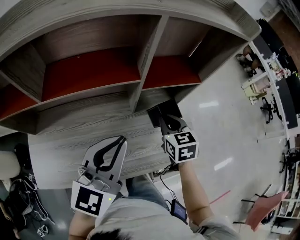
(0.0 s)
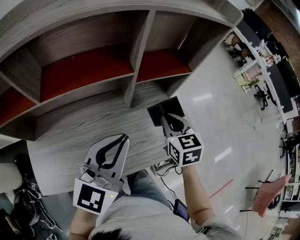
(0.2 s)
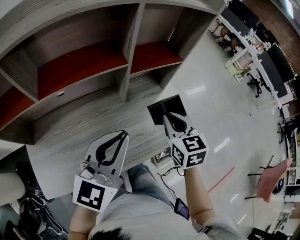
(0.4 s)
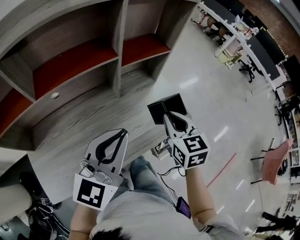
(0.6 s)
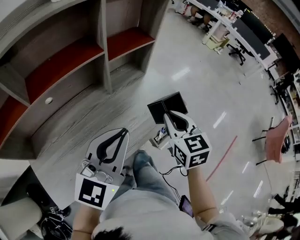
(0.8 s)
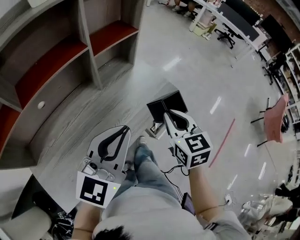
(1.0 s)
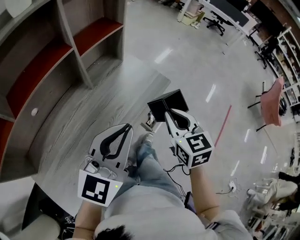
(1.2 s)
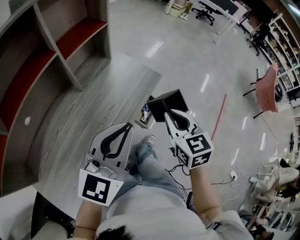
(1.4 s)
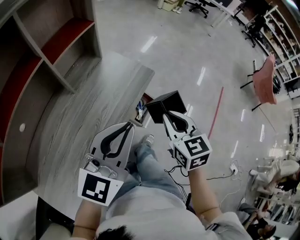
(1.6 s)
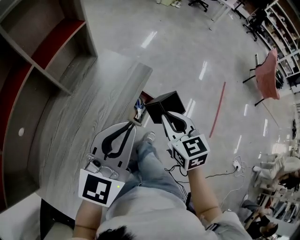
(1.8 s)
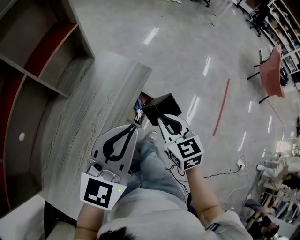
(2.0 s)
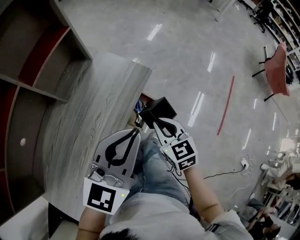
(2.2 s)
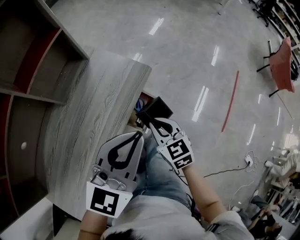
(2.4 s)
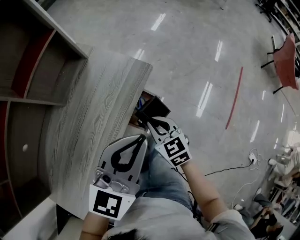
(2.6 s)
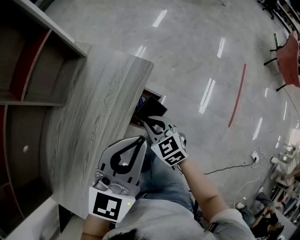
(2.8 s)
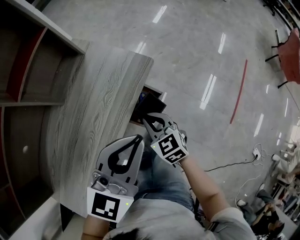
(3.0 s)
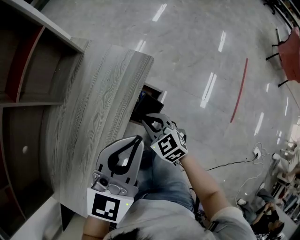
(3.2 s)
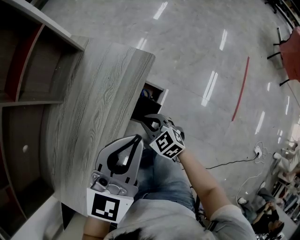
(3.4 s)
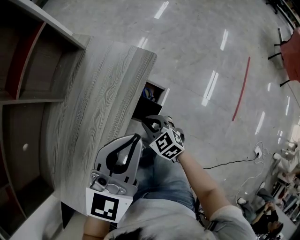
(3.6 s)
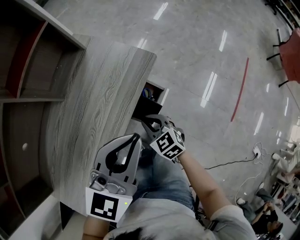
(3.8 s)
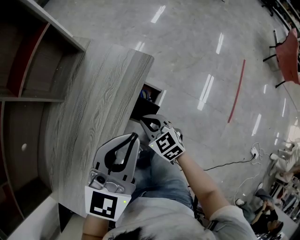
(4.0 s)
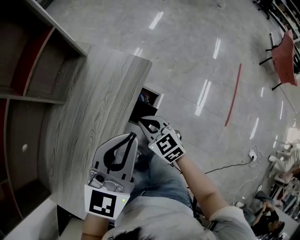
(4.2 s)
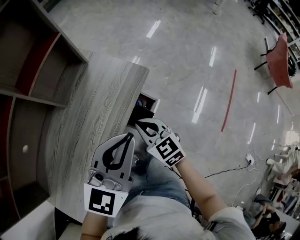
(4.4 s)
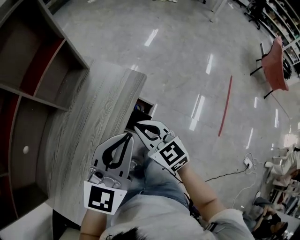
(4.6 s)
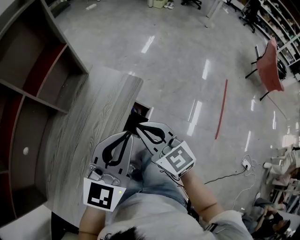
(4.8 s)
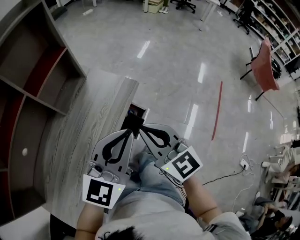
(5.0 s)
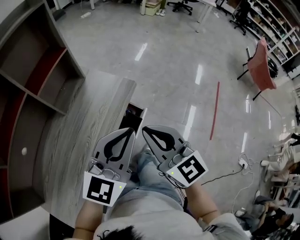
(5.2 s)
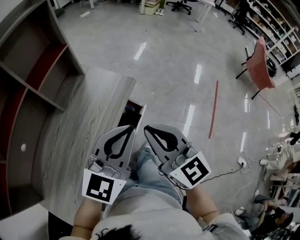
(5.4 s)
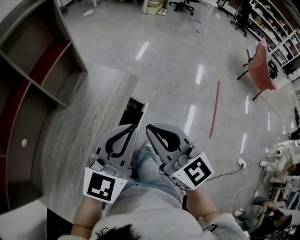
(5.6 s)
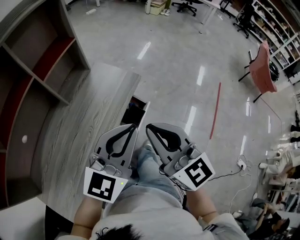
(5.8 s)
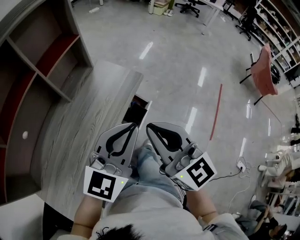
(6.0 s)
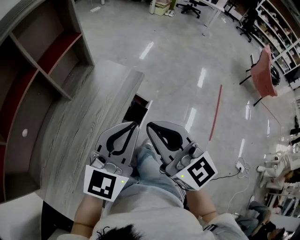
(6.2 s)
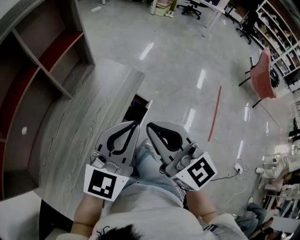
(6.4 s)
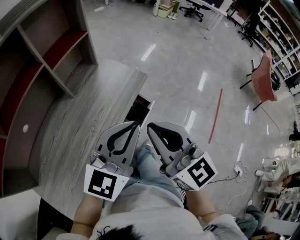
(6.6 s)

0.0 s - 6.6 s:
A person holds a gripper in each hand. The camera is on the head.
0.0 s - 1.6 s: The right gripper moves about 35 cm, and rotates roughly 40 degrees. Meanwhile the left gripper moves about 20 cm, and swivels some 50 degrees.
1.6 s - 3.2 s: The right gripper is displaced downward by roughly 20 cm, and swivels about 20 degrees; the left gripper goes about 15 cm to the right, downward and forward.
3.2 s - 5.0 s: The left gripper shifts some 5 cm upward. Meanwhile the right gripper heads upward, covering roughly 25 cm, and swivels approximately 30 degrees.
5.0 s - 6.6 s: The left gripper moves backward, some 5 cm. Meanwhile the right gripper travels backward and upward by some 10 cm.

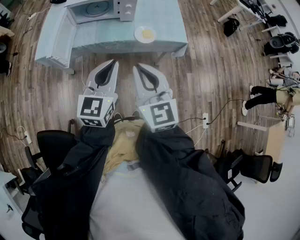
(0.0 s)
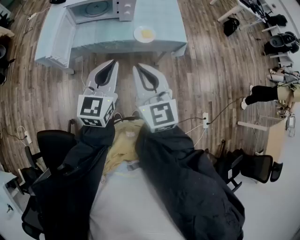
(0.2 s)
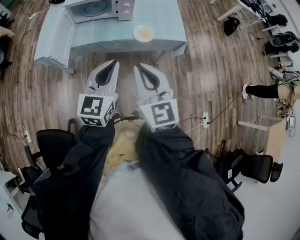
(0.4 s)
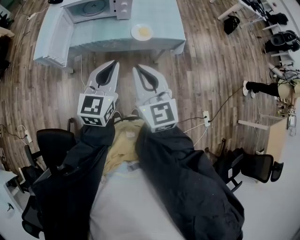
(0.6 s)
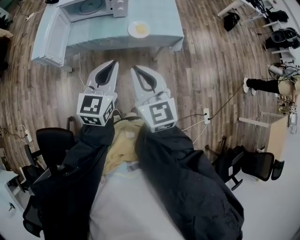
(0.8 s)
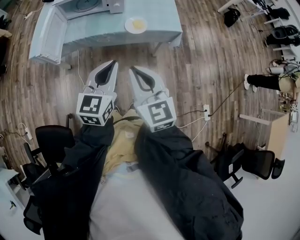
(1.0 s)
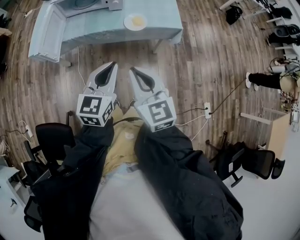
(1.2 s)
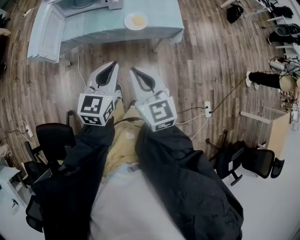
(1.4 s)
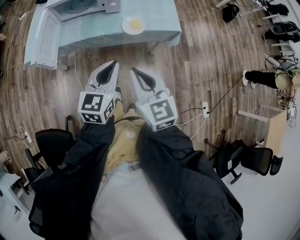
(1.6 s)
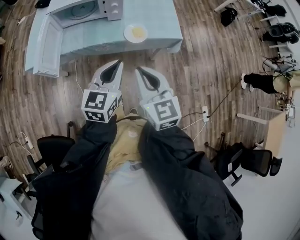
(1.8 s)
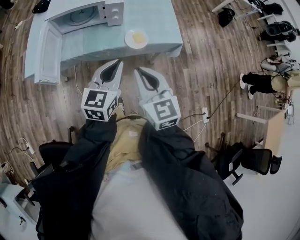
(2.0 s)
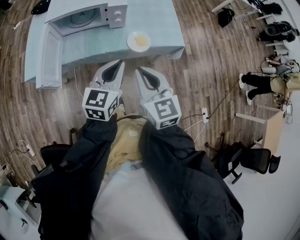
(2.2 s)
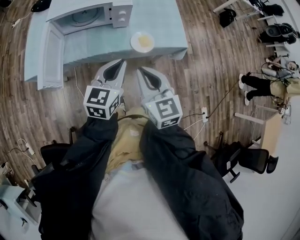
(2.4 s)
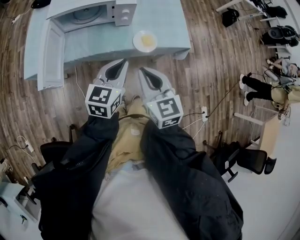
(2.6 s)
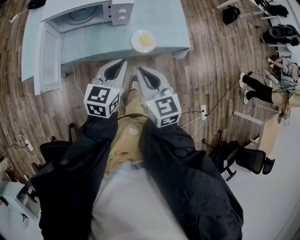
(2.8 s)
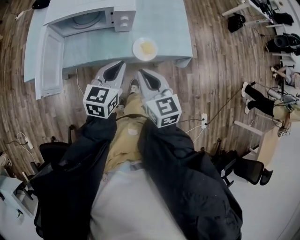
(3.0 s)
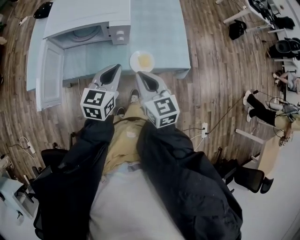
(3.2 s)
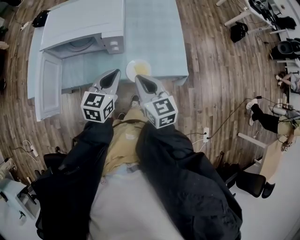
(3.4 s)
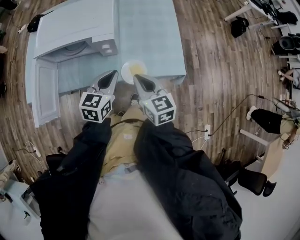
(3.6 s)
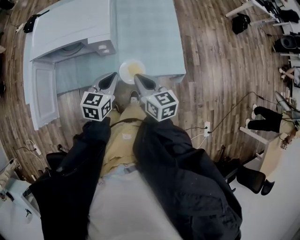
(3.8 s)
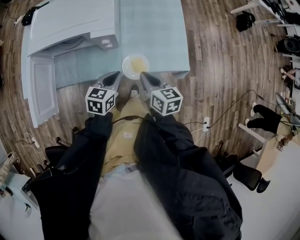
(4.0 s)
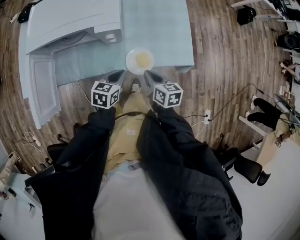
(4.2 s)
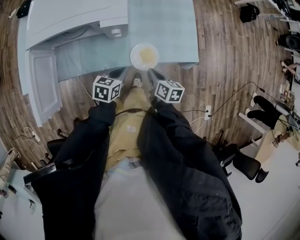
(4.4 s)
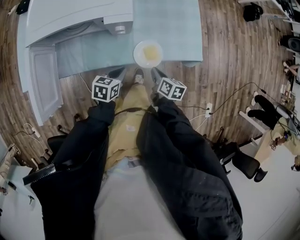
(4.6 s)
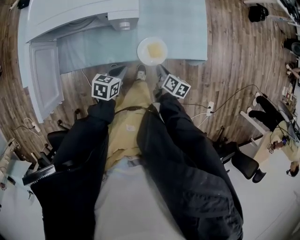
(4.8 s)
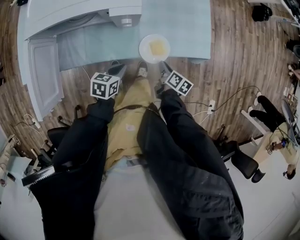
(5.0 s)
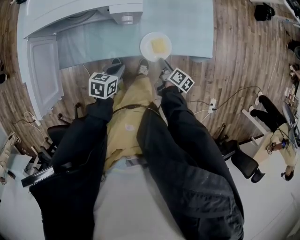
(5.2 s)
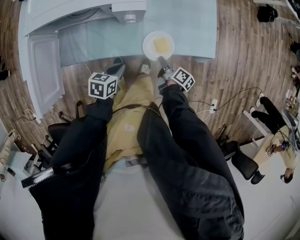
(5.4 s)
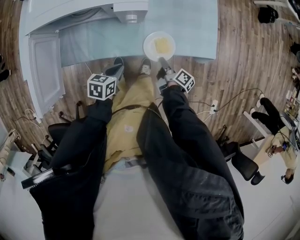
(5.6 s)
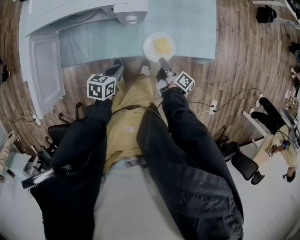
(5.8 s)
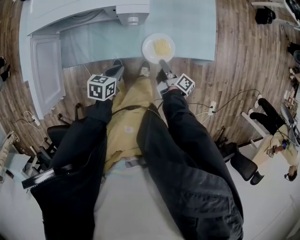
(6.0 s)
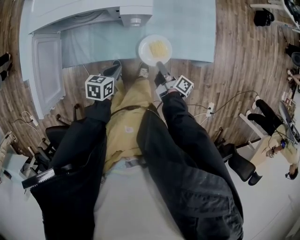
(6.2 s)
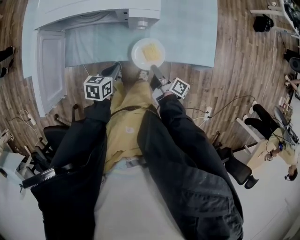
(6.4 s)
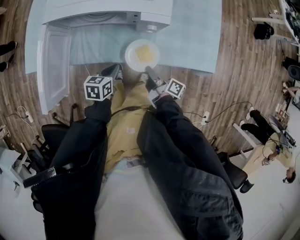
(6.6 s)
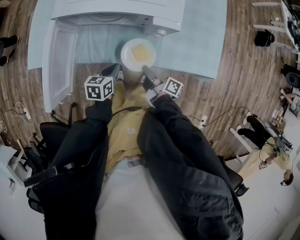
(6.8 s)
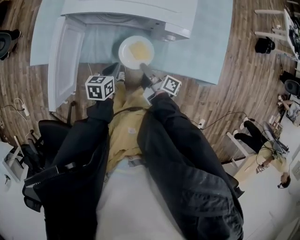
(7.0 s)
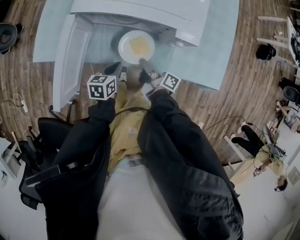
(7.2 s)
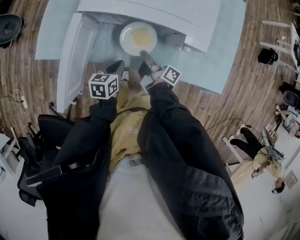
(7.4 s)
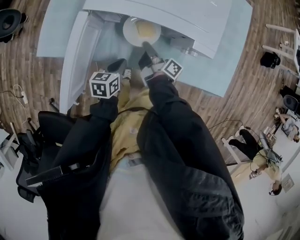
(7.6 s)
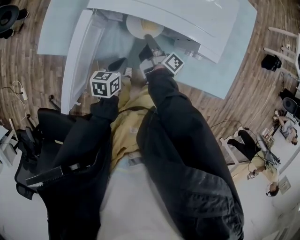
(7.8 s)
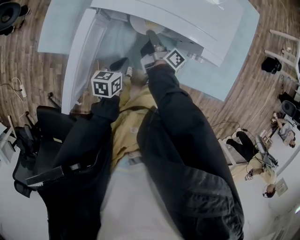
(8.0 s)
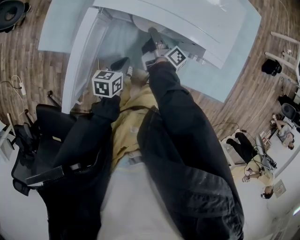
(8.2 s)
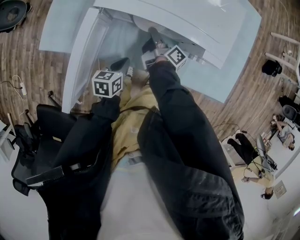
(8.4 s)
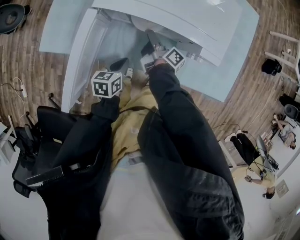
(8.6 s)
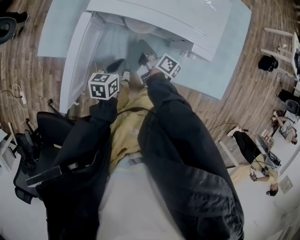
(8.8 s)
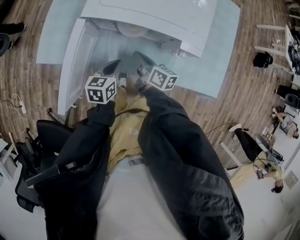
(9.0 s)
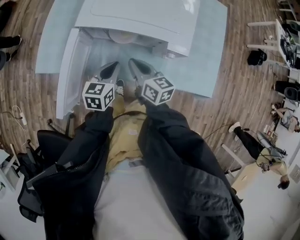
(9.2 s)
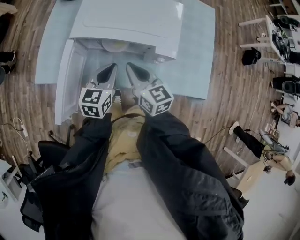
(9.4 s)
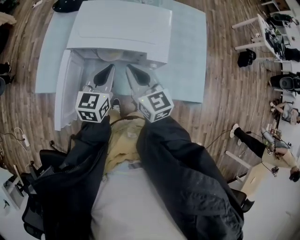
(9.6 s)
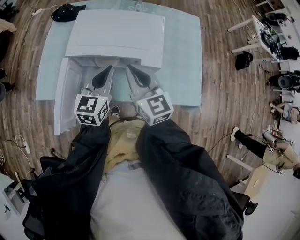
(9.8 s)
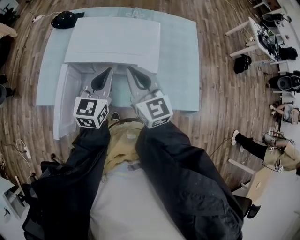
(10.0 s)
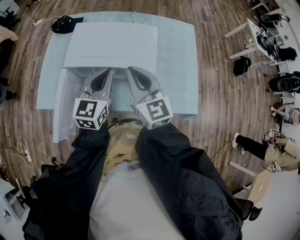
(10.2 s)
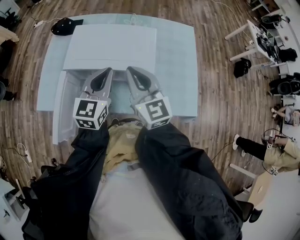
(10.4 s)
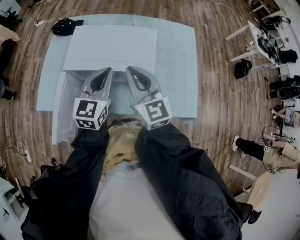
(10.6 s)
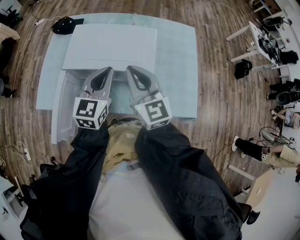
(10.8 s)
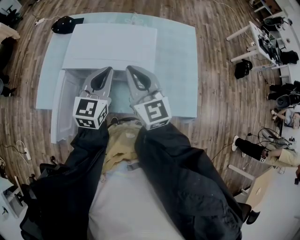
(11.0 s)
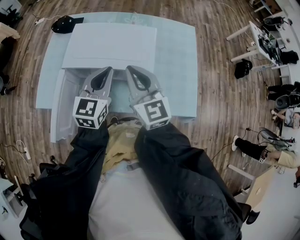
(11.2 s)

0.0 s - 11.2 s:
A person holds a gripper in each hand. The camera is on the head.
0.0 s - 1.6 s: The left gripper travels to the right and downward by about 10 cm. Meanwhile the right gripper heads downward and to the right, covering about 10 cm.
1.6 s - 3.2 s: Both grippers travel together forward, roughly 25 cm.
3.2 s - 4.8 s: The two grippers go about 25 cm downward. The left gripper turns by about 40 degrees. The right gripper twists some 50 degrees clockwise, seen from behind.
4.8 s - 6.4 s: The grippers both shift to the left by some 10 cm. The right gripper changes its angle by approximately 40 degrees, and opens and closes again.
6.4 s - 8.0 s: The right gripper goes roughly 30 cm to the left and forward. Meanwhile the left gripper goes about 15 cm to the left and forward.
8.0 s - 9.6 s: The left gripper heads upward and to the right, covering about 25 cm, and changes its angle by about 40 degrees. Meanwhile the right gripper heads upward, covering some 25 cm, rolls counterclockwise, seen from behind, by some 80 degrees, and opens, then closes once more.
9.6 s - 11.2 s: The grippers both shift upward by approximately 5 cm.

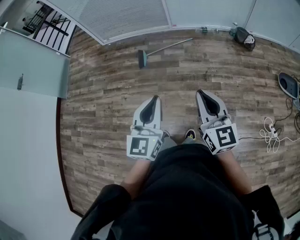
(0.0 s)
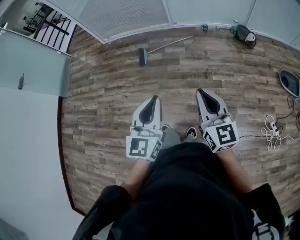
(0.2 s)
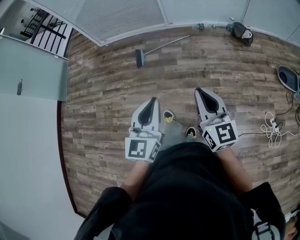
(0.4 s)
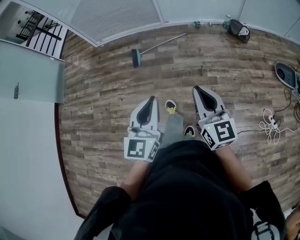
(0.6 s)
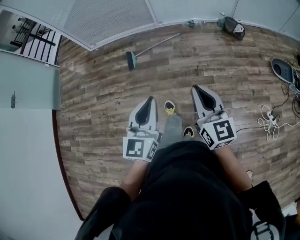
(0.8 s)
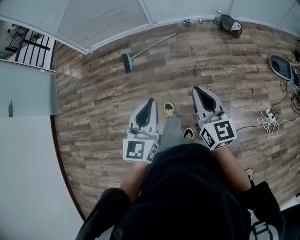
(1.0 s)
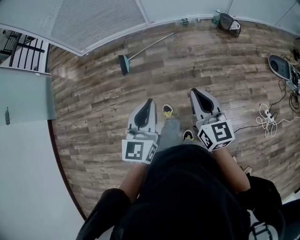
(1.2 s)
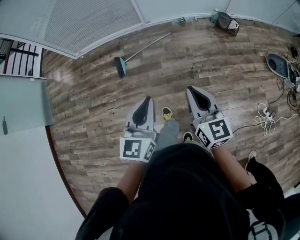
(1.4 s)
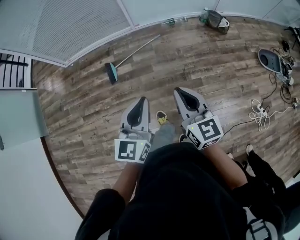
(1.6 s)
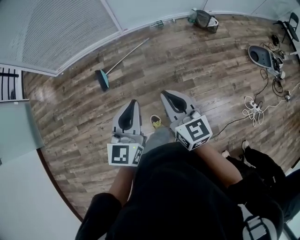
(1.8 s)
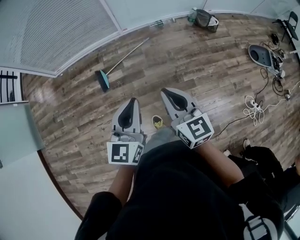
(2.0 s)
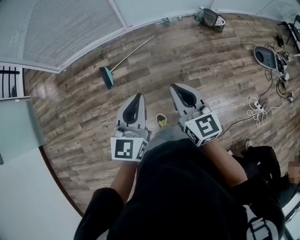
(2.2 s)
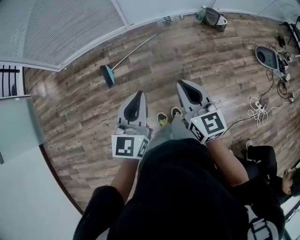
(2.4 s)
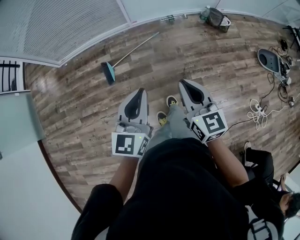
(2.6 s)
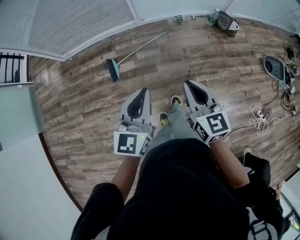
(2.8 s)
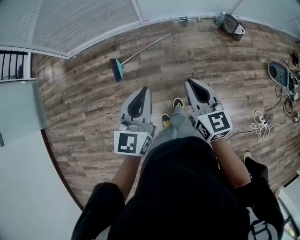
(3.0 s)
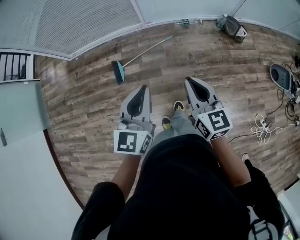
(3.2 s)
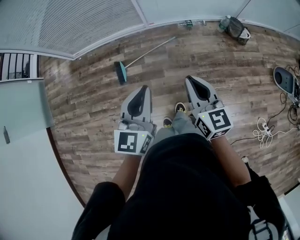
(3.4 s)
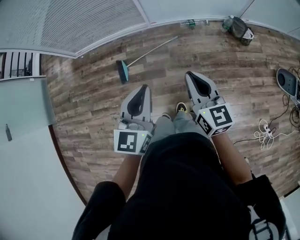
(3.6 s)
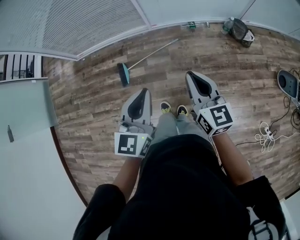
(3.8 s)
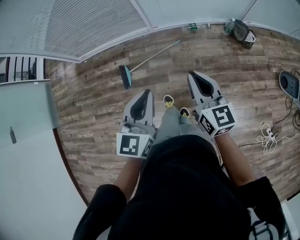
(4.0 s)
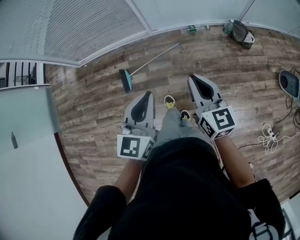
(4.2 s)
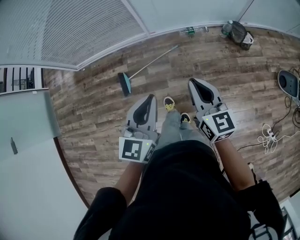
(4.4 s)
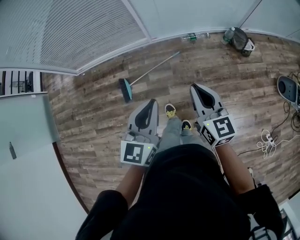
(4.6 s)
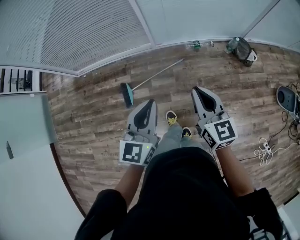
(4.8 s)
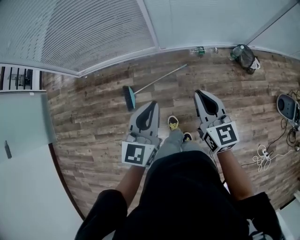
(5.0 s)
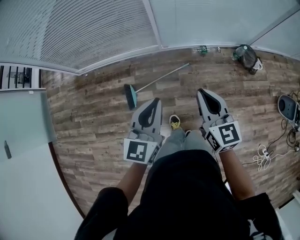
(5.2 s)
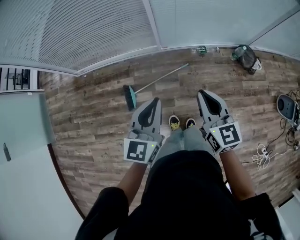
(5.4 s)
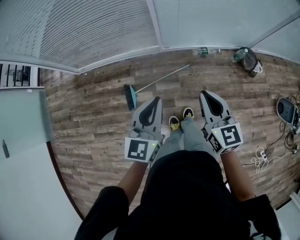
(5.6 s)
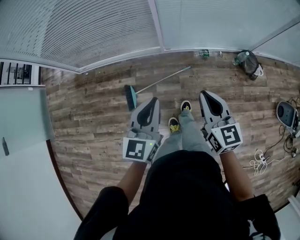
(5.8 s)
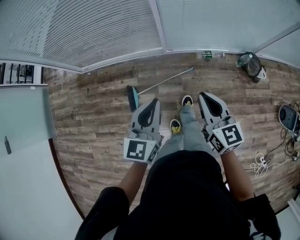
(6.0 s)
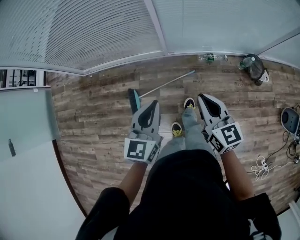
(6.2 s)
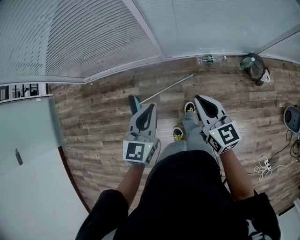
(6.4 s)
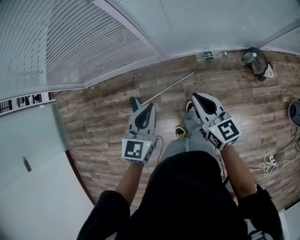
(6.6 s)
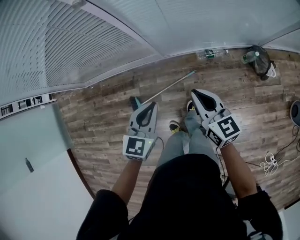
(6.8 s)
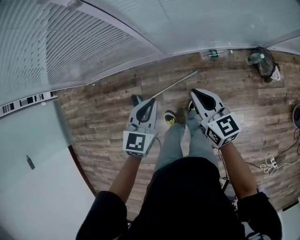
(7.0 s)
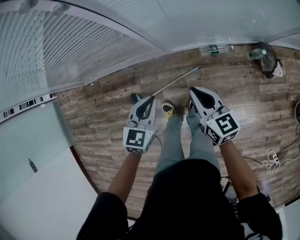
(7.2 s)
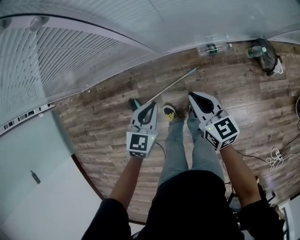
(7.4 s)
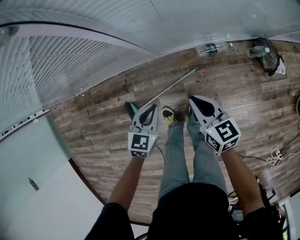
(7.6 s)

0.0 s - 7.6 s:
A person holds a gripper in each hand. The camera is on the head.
0.0 s - 1.6 s: Both grippers move forward, approximately 25 cm.
1.6 s - 3.0 s: The two grippers go roughly 15 cm forward.
3.0 s - 4.6 s: The two grippers go approximately 15 cm forward.
4.6 s - 6.0 s: Both grippers move forward and to the left, about 20 cm.
6.0 s - 7.6 s: The right gripper heads forward and downward, covering some 35 cm. Meanwhile the left gripper is displaced downward and forward by approximately 40 cm, and tips its fingers downward by some 30 degrees.
